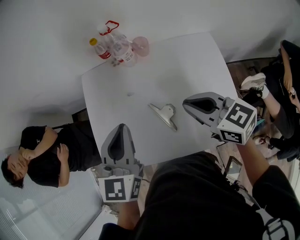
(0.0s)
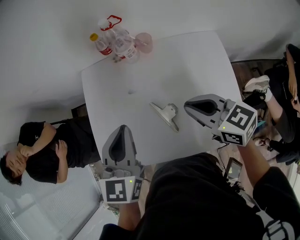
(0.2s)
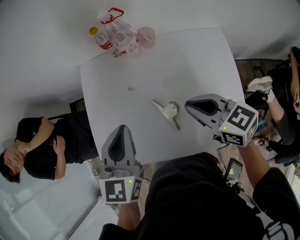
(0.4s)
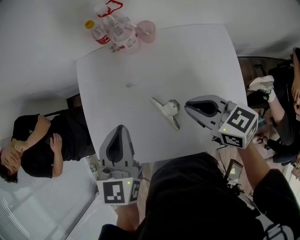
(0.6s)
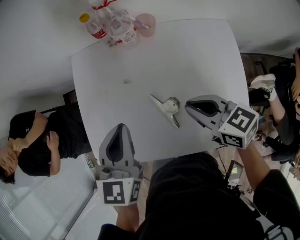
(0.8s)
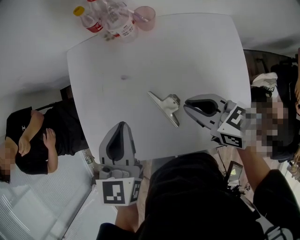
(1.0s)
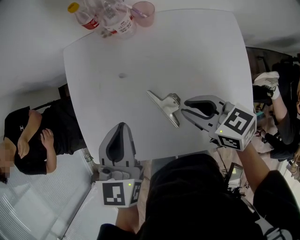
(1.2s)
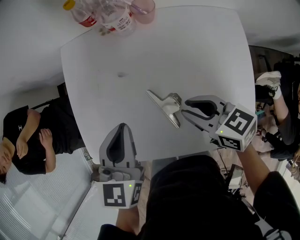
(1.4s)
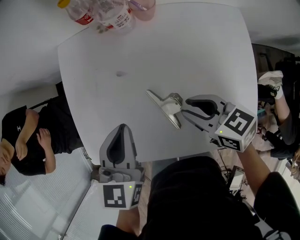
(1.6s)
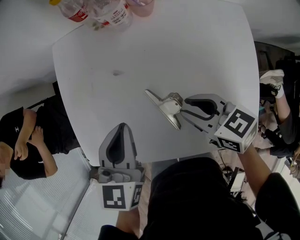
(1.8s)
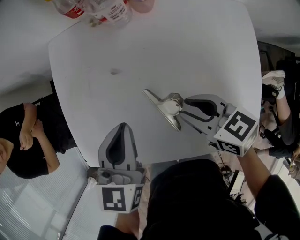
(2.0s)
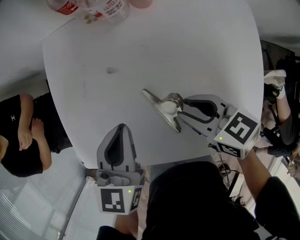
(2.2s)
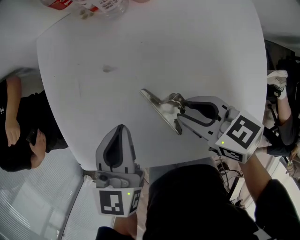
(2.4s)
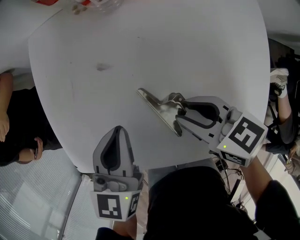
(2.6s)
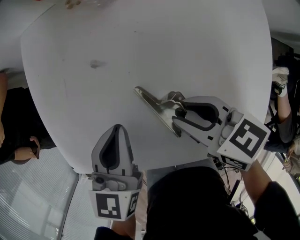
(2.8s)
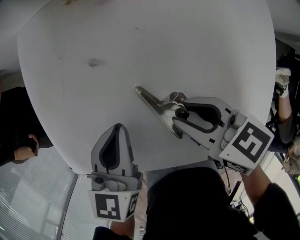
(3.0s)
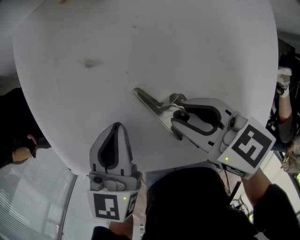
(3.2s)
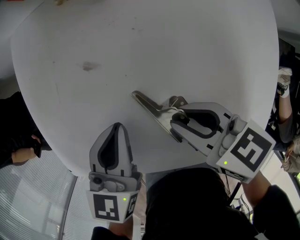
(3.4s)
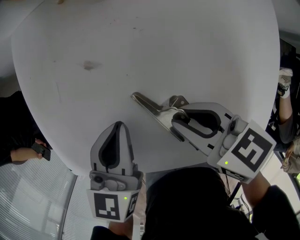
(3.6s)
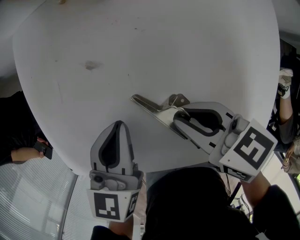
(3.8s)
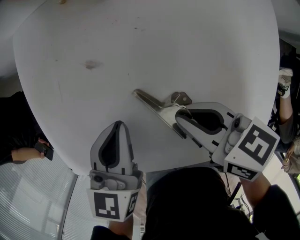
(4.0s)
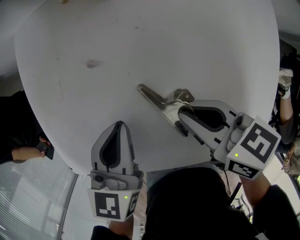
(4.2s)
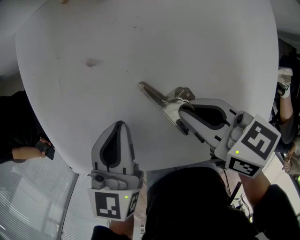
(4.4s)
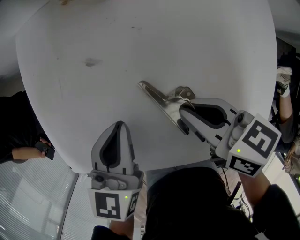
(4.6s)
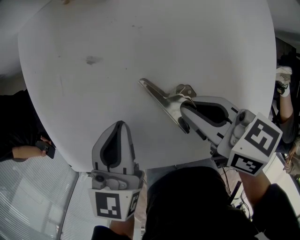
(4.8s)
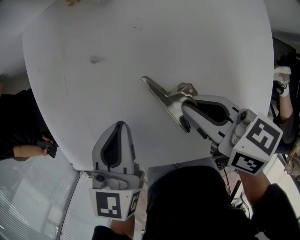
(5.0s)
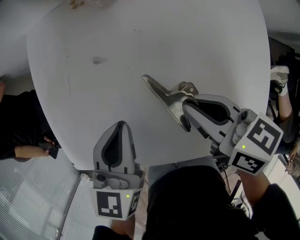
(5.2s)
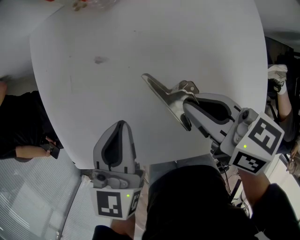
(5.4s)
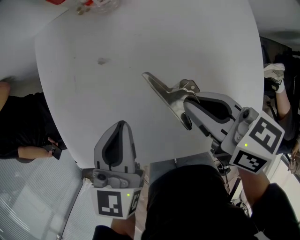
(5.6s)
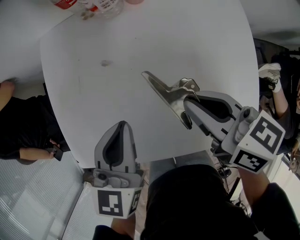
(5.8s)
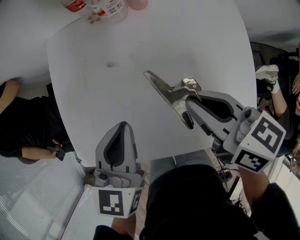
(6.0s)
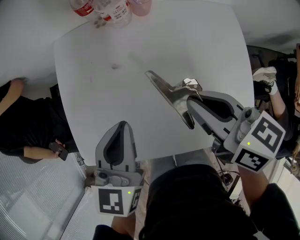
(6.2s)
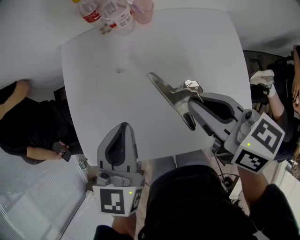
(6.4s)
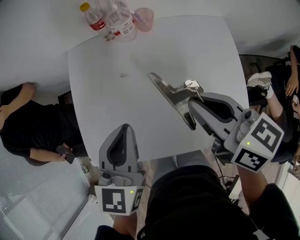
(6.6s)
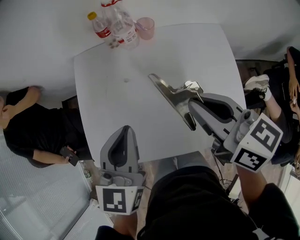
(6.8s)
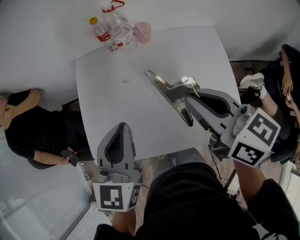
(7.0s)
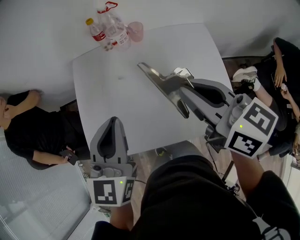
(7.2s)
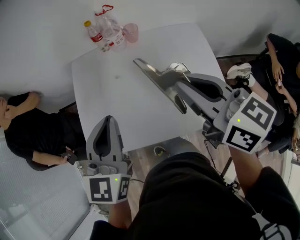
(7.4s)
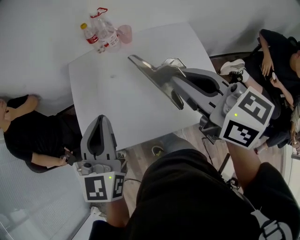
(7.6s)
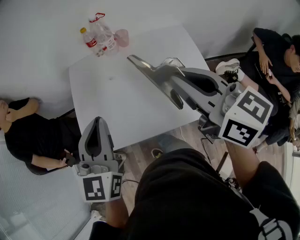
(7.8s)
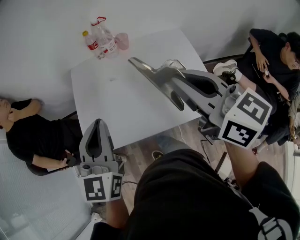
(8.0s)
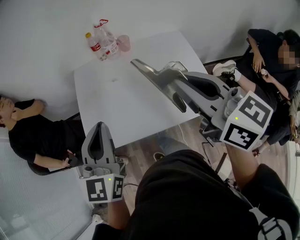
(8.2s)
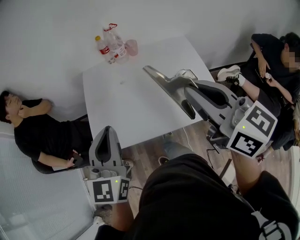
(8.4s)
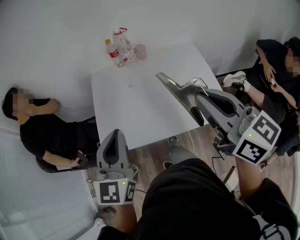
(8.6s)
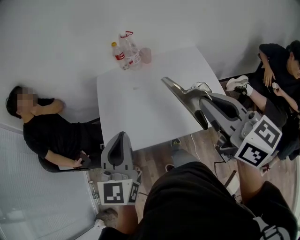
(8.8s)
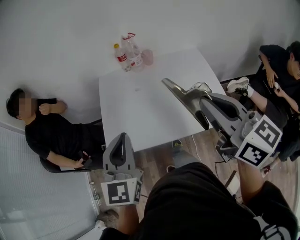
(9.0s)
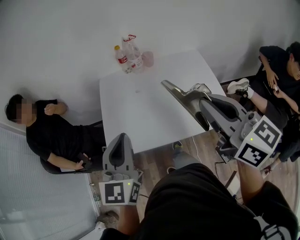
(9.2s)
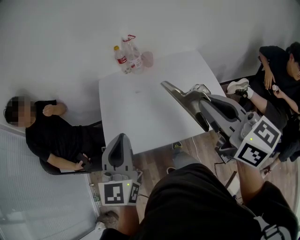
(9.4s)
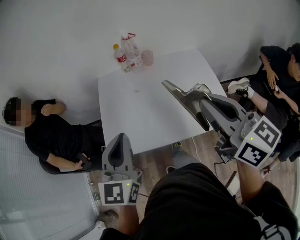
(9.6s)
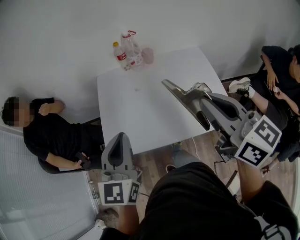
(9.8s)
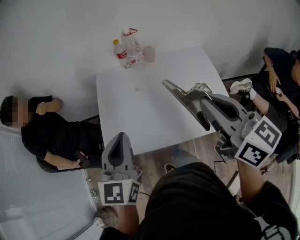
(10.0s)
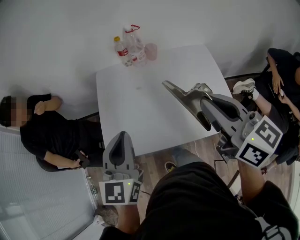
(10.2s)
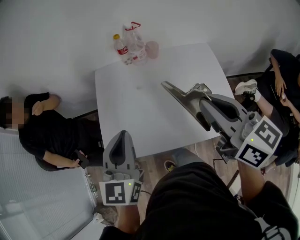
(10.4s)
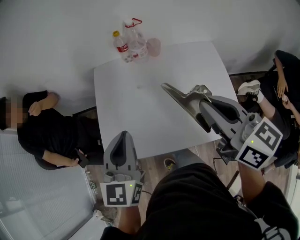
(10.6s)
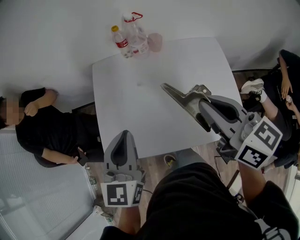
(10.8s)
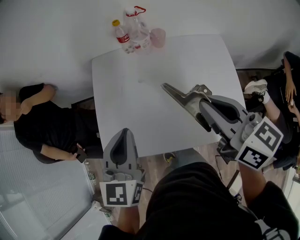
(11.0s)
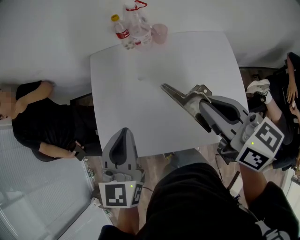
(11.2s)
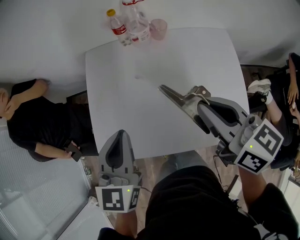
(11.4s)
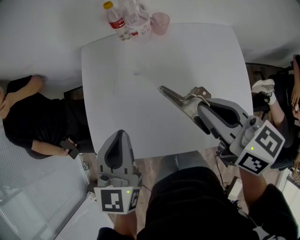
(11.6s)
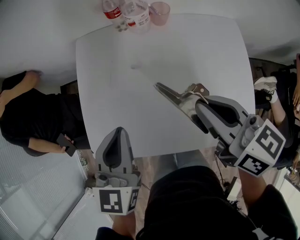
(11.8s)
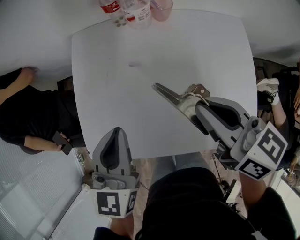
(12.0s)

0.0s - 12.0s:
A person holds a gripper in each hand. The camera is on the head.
0.0s - 1.6s: The two grippers go about 15 cm downward. The right gripper rotates some 20 degrees, and opens up.
1.6s - 3.0s: The right gripper goes about 5 cm downward. The left gripper goes about 10 cm downward.
3.0s - 4.4s: The right gripper closes.
6.0s - 7.6s: The grippers both shift upward by approximately 20 cm. The right gripper turns by roughly 30 degrees, while the left gripper swivels roughly 20 degrees.
7.6s - 9.0s: The left gripper goes some 5 cm to the left.
9.0s - 10.4s: The grippers move only a little.
10.4s - 12.0s: The left gripper is displaced downward by about 10 cm; the right gripper heads downward, covering approximately 15 cm, and swivels approximately 20 degrees.

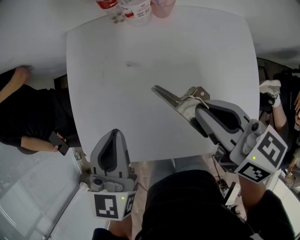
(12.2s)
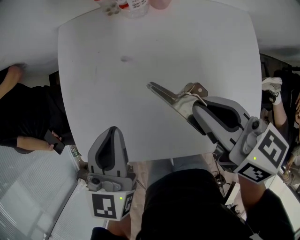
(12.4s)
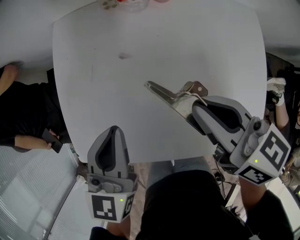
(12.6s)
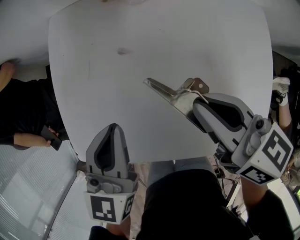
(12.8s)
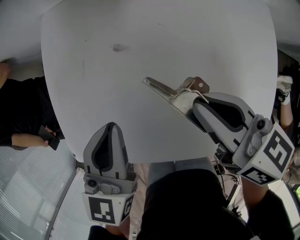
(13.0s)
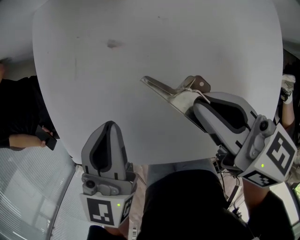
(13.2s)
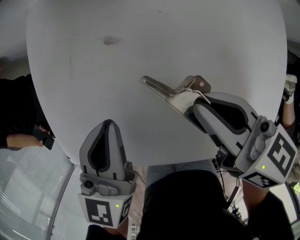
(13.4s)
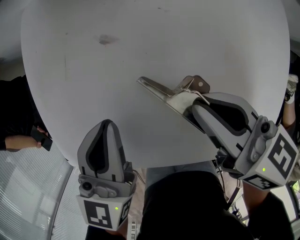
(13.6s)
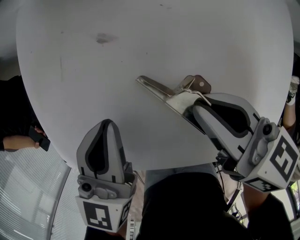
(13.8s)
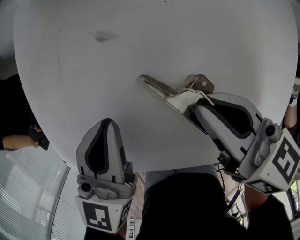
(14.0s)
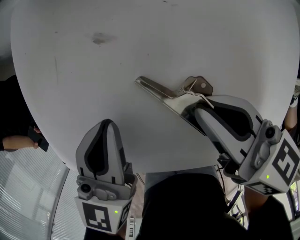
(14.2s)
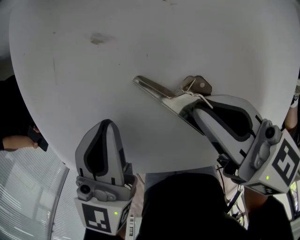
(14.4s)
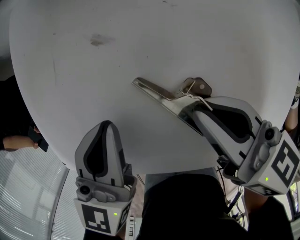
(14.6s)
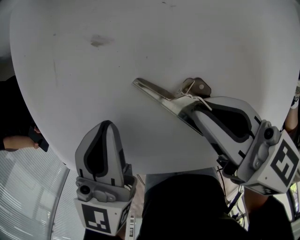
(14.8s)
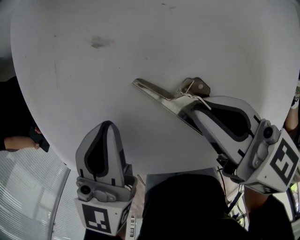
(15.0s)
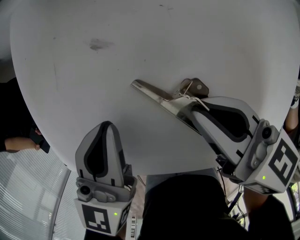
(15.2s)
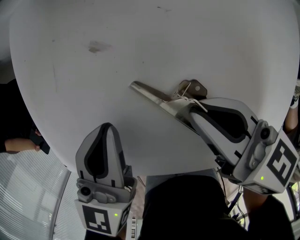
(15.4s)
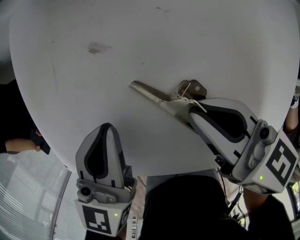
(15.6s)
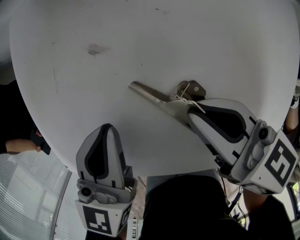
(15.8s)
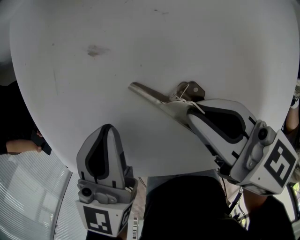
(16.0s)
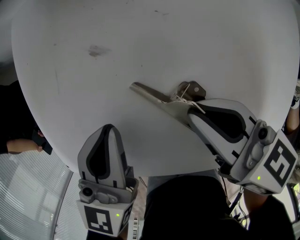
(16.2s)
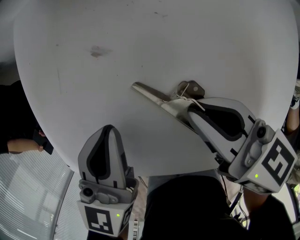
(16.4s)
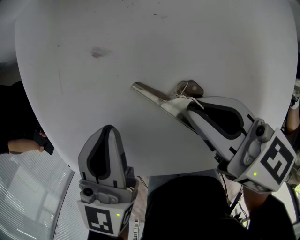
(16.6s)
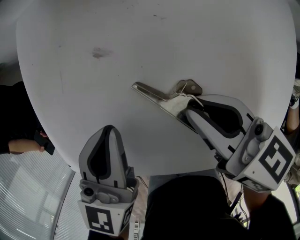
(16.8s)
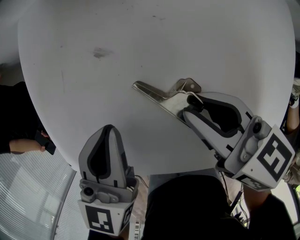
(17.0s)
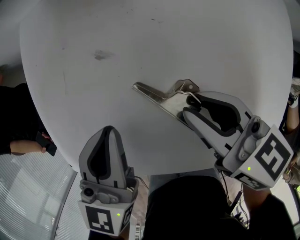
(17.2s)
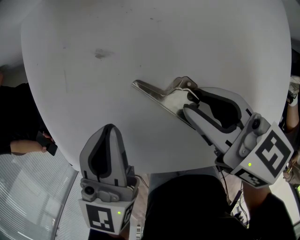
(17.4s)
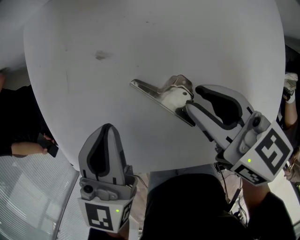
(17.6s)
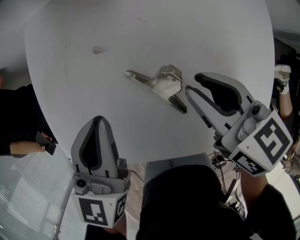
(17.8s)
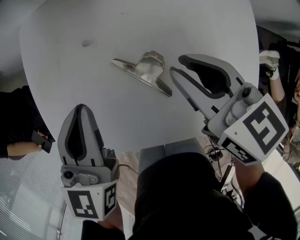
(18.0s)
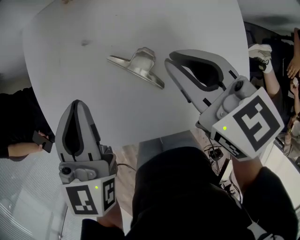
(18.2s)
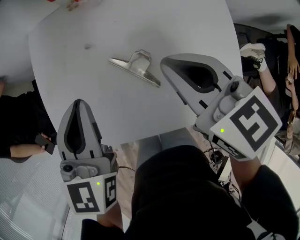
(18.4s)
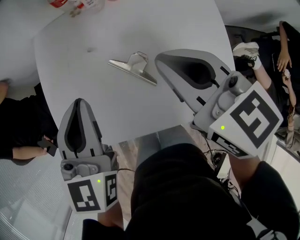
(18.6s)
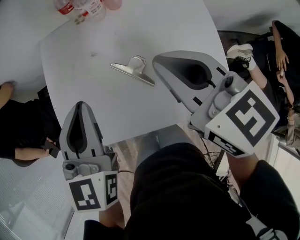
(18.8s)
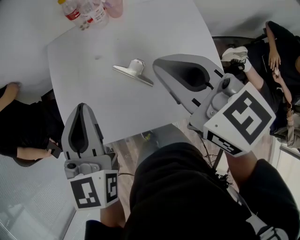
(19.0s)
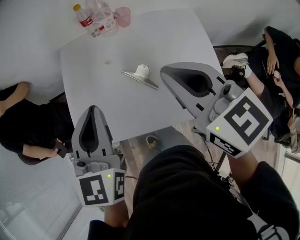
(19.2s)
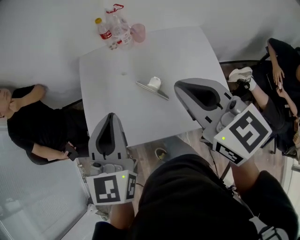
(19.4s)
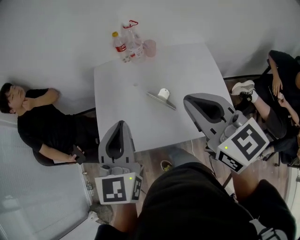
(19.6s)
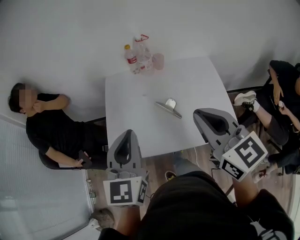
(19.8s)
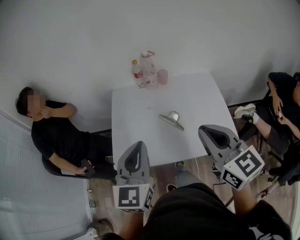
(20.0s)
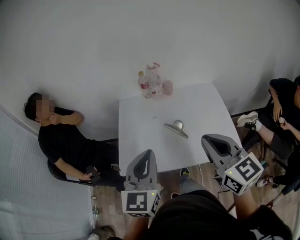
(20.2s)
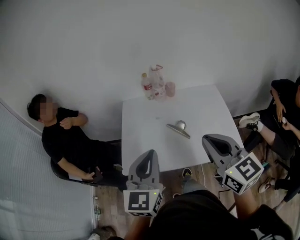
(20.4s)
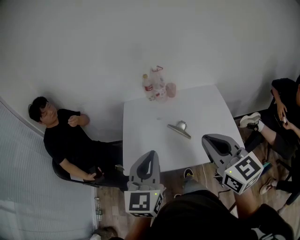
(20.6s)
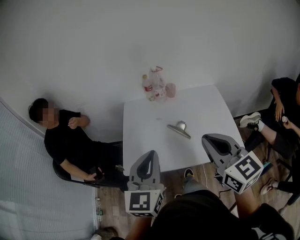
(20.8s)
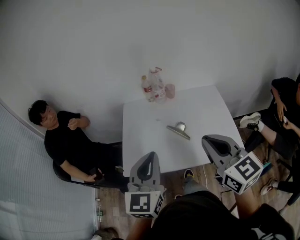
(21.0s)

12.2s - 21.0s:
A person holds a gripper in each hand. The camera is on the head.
12.2s - 15.2s: The grippers move only a little.
15.2s - 16.6s: Both grippers stay about where they are.
16.6s - 18.0s: The grippers both shift upward by approximately 5 cm.
18.0s - 19.6s: Both grippers travel together upward and backward, some 30 cm. The right gripper changes its angle by some 30 degrees, and closes its fingers.
19.6s - 21.0s: The two grippers go some 5 cm backward.

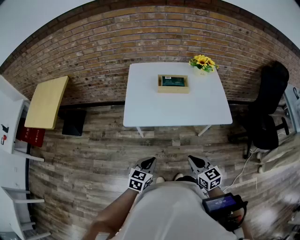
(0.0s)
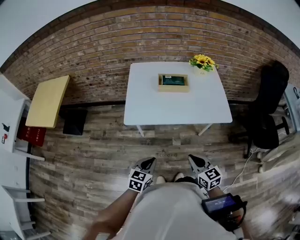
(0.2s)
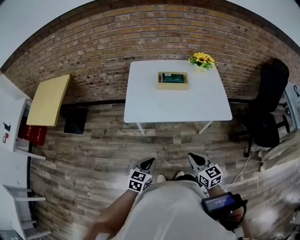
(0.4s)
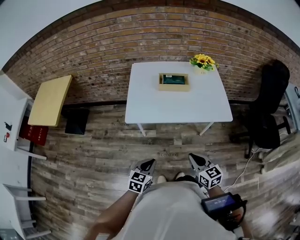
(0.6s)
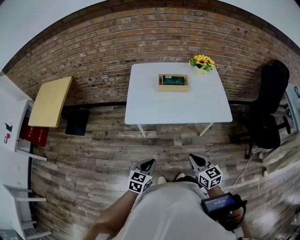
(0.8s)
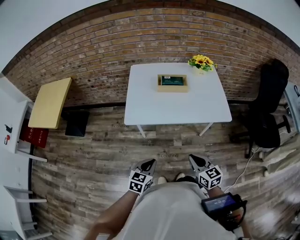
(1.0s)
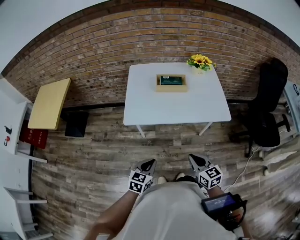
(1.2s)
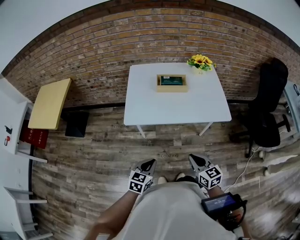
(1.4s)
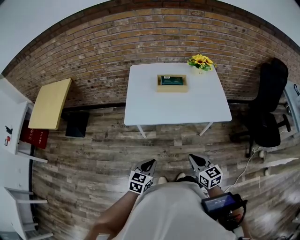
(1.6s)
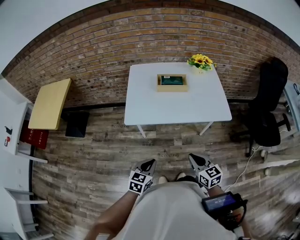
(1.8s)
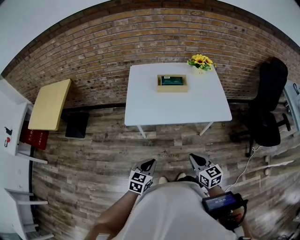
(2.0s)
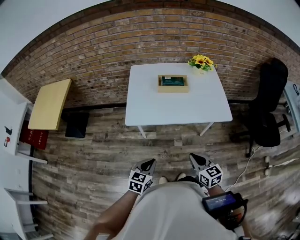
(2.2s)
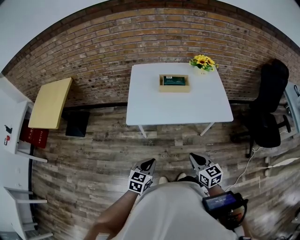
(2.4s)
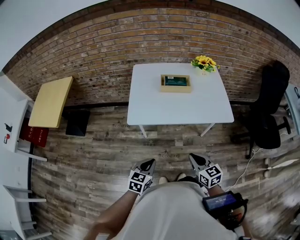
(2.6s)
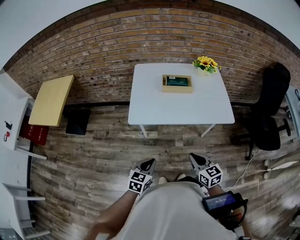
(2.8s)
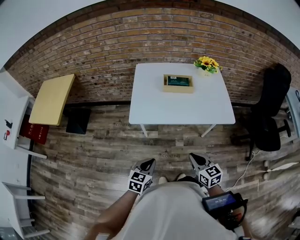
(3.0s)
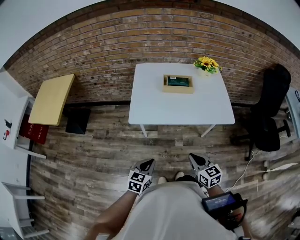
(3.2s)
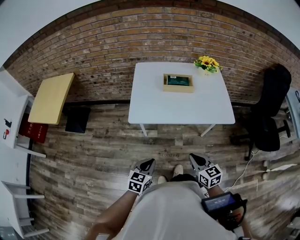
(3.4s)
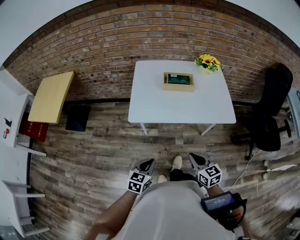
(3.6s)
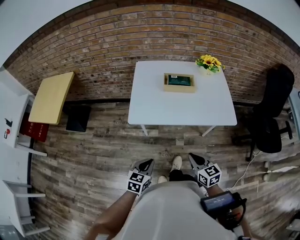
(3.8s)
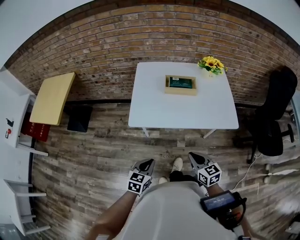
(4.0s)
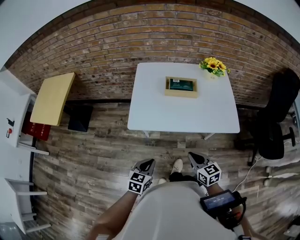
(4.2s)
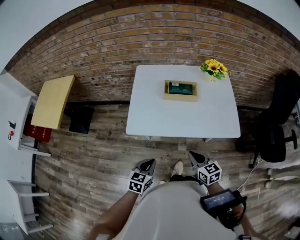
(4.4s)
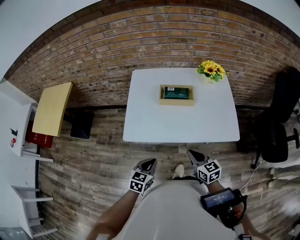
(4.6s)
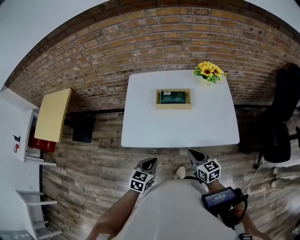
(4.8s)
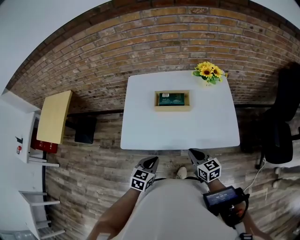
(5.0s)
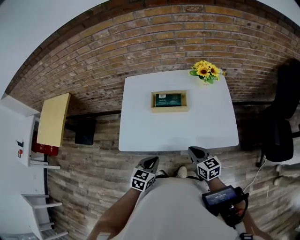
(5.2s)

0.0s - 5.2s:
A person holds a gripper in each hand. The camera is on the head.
0.0s - 3.4s: The grippers move only a little.
3.4s - 5.2s: The right gripper travels forward by some 20 cm. Meanwhile the left gripper shifts some 20 cm forward and to the right.
